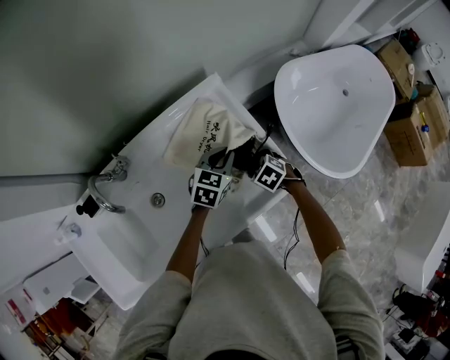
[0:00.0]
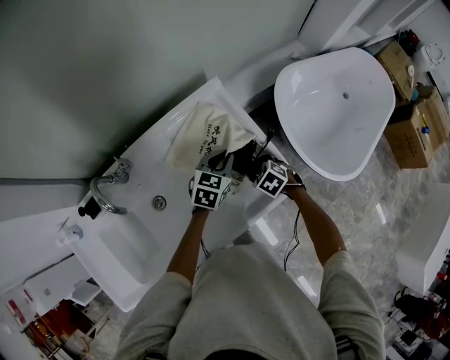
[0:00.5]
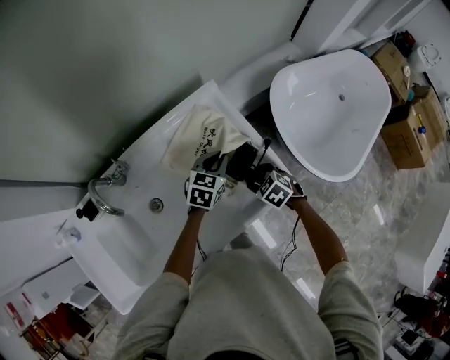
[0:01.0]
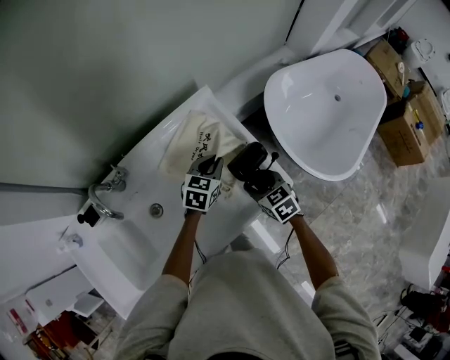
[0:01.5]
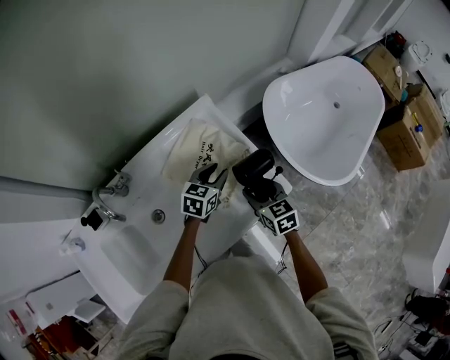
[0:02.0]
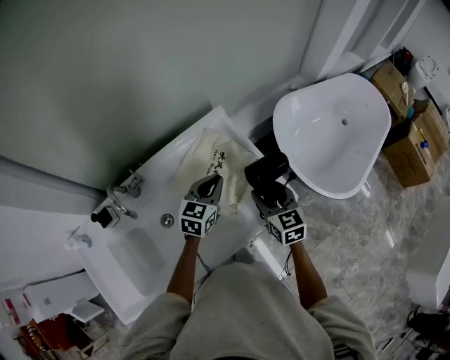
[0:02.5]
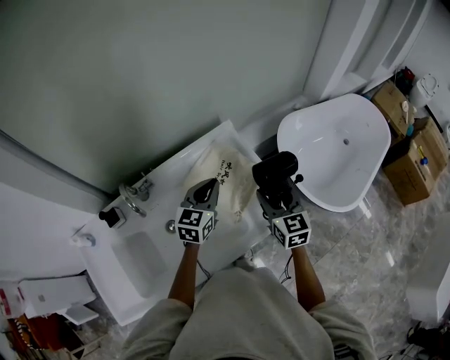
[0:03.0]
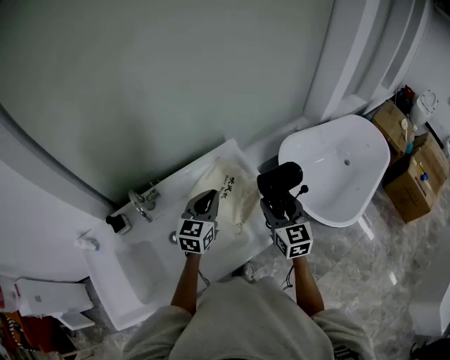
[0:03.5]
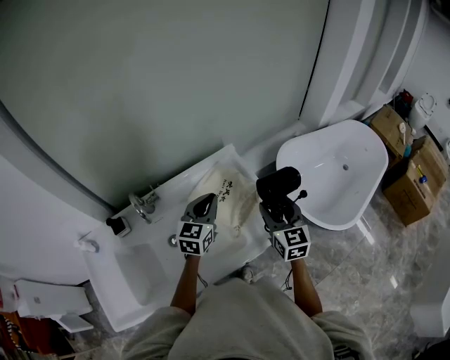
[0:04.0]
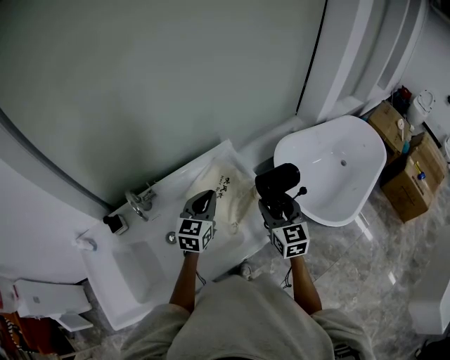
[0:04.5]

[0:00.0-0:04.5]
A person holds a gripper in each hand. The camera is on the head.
0:00.0 to 0:02.0: The right gripper heads upward, covering roughly 10 cm, and tips its fingers upward by some 40 degrees, while the left gripper opens its fingers.
0:02.0 to 0:04.5: The left gripper is displaced upward and to the left by about 20 cm, swivels some 30 degrees, and closes, while the right gripper goes some 15 cm upward, and changes its angle by some 30 degrees.

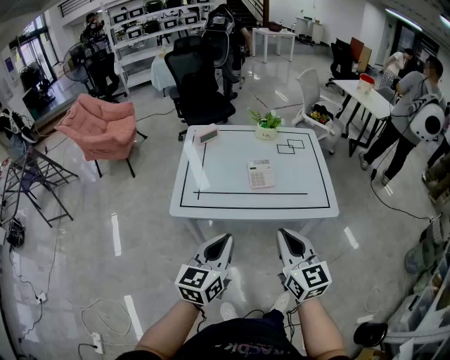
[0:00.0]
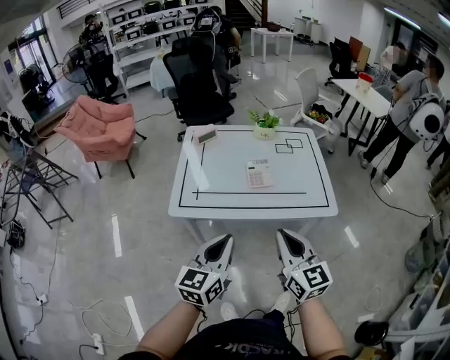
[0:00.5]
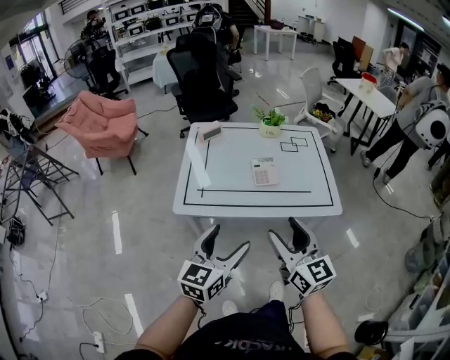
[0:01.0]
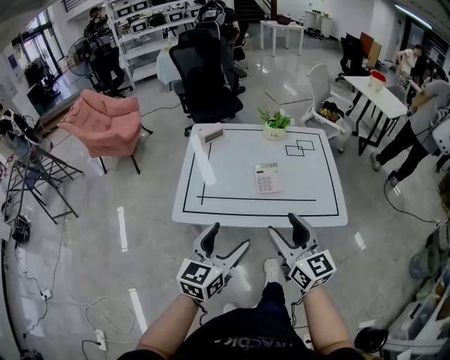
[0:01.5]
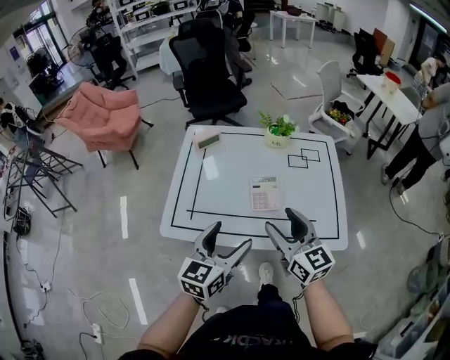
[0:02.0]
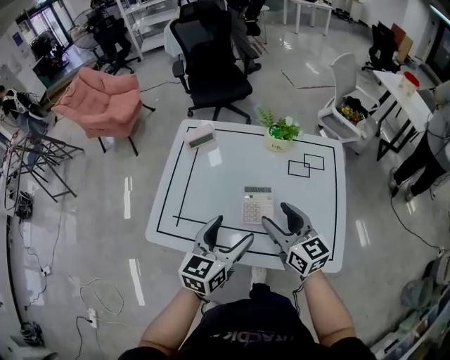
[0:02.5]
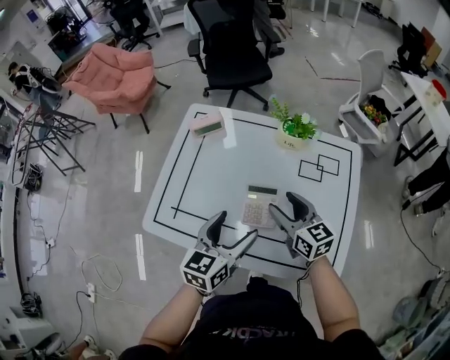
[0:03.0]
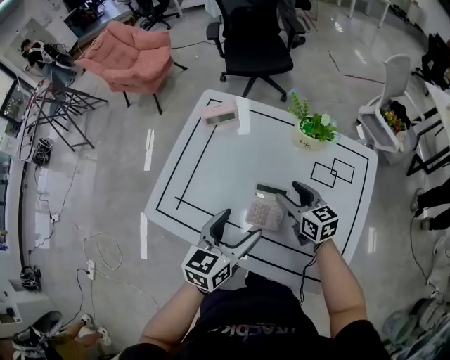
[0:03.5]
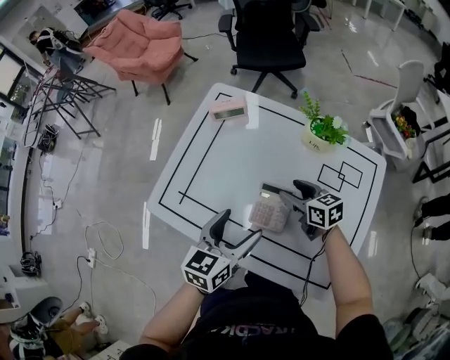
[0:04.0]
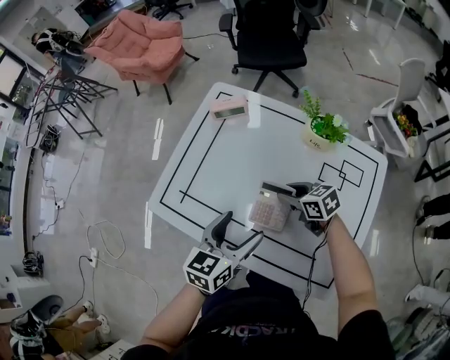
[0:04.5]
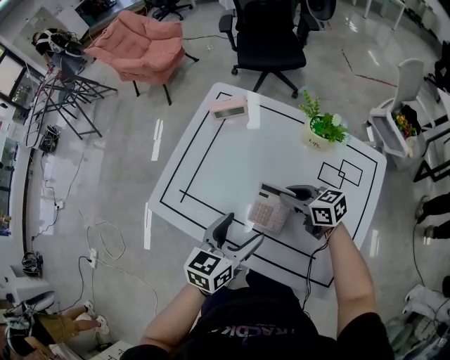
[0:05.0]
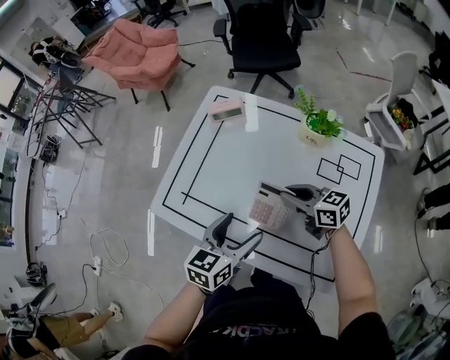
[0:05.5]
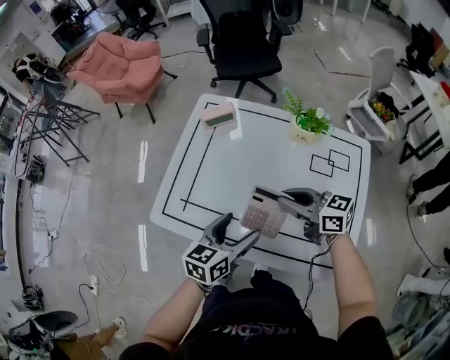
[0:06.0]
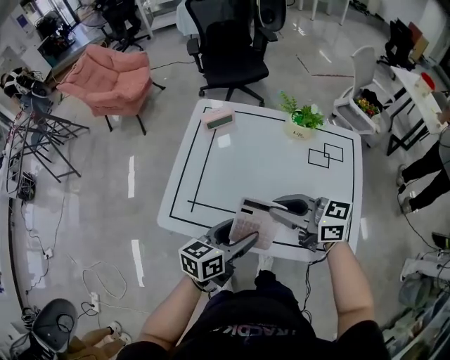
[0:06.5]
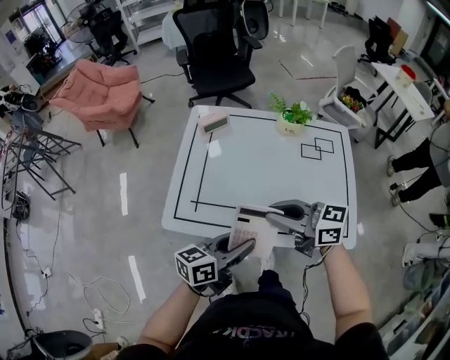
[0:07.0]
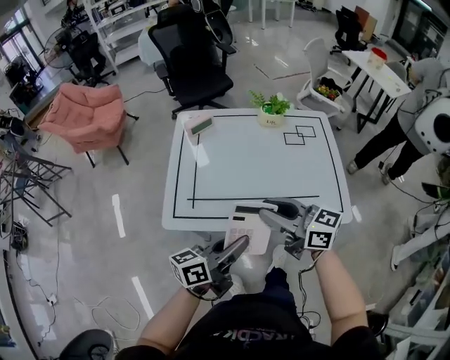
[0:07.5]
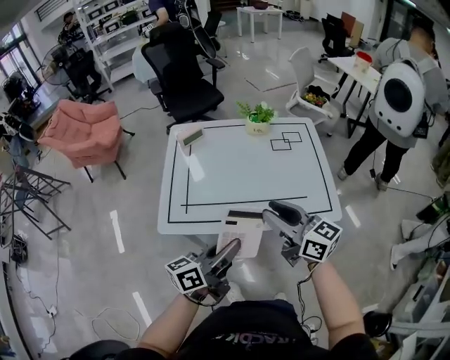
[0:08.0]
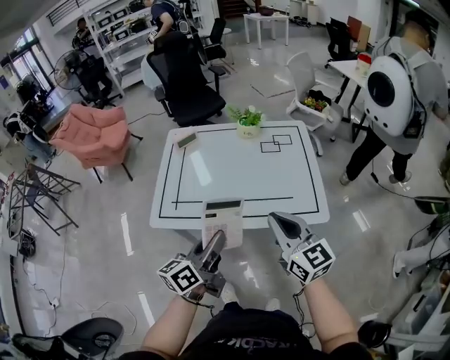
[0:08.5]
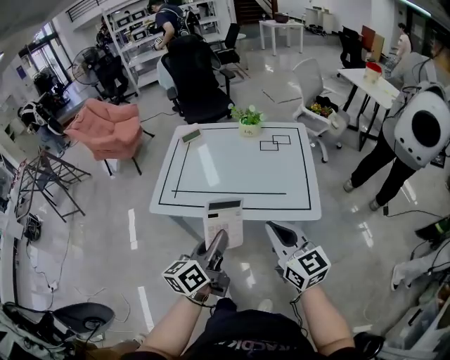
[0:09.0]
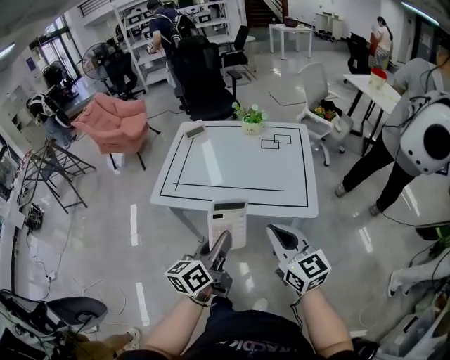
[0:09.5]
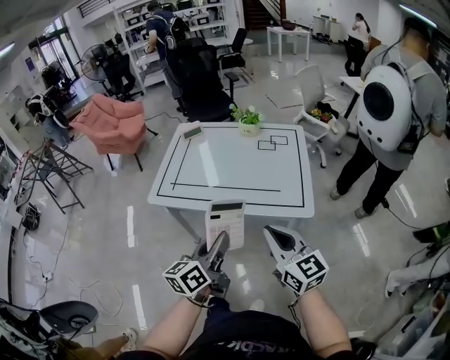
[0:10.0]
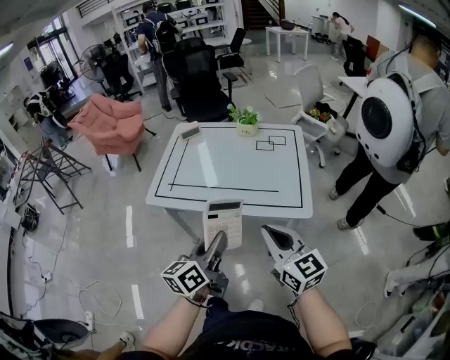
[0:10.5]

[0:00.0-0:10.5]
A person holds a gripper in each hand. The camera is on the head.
0:00.0 to 0:02.0: Both grippers move forward, some 20 cm. The left gripper opens its fingers, while the right gripper opens up.
0:02.0 to 0:04.0: The right gripper changes place by about 35 cm, and turns by some 40 degrees. Meanwhile the left gripper shifts by about 20 cm, and rotates some 20 degrees.
0:04.0 to 0:06.5: The left gripper heads to the left, covering some 5 cm, and swivels roughly 30 degrees; the right gripper goes about 25 cm upward, to the left and backward, changes its angle by roughly 30 degrees, and closes up.
0:06.5 to 0:08.5: The left gripper travels backward and upward by approximately 20 cm, and closes up, while the right gripper heads backward and to the right, covering approximately 25 cm, and turns by roughly 50 degrees.
0:08.5 to 0:10.5: The two grippers go approximately 15 cm backward and to the right.

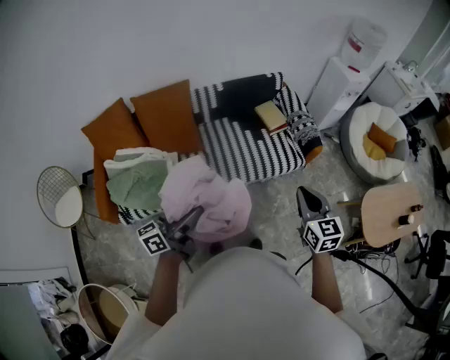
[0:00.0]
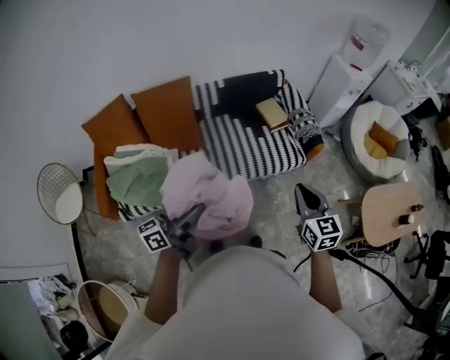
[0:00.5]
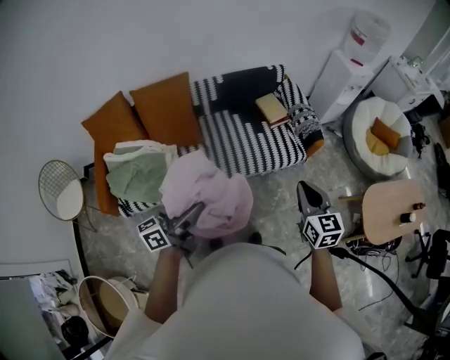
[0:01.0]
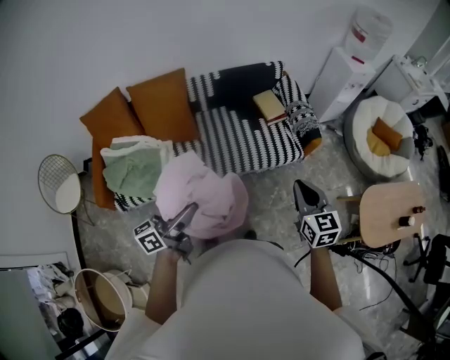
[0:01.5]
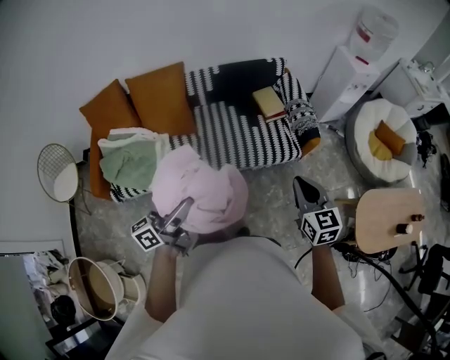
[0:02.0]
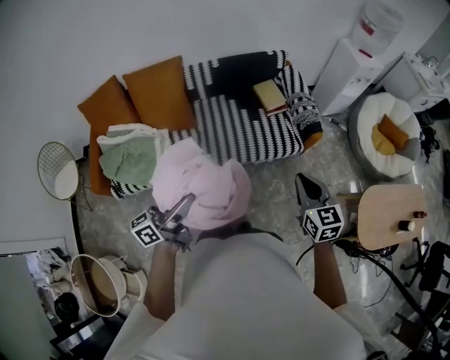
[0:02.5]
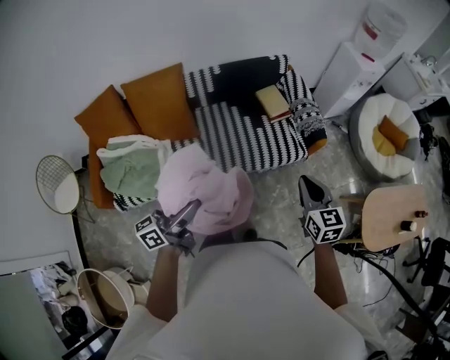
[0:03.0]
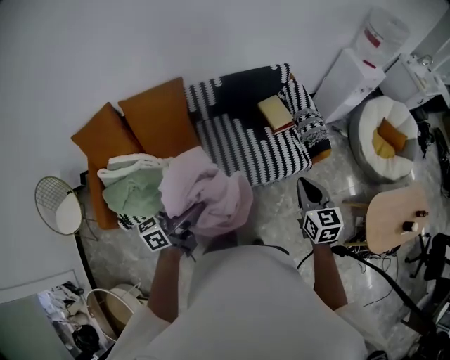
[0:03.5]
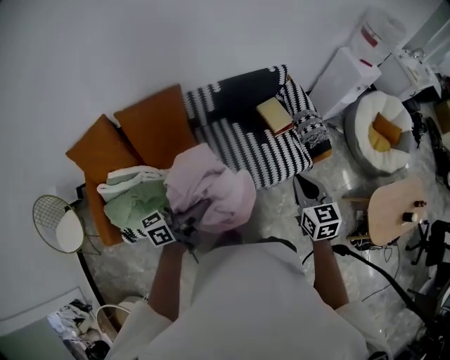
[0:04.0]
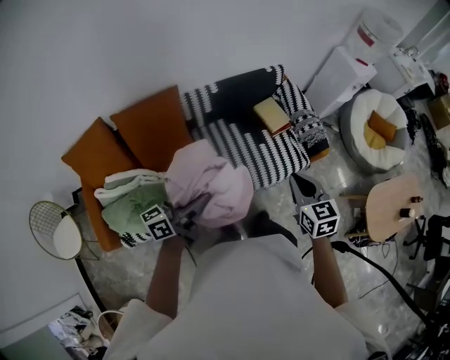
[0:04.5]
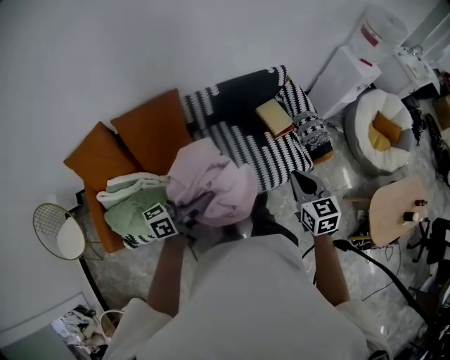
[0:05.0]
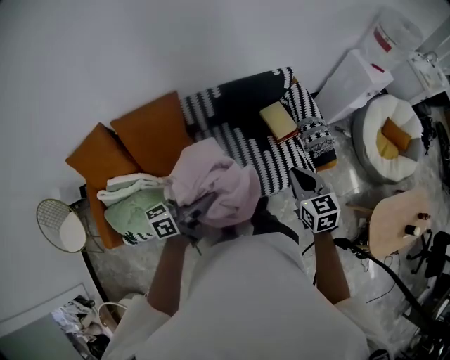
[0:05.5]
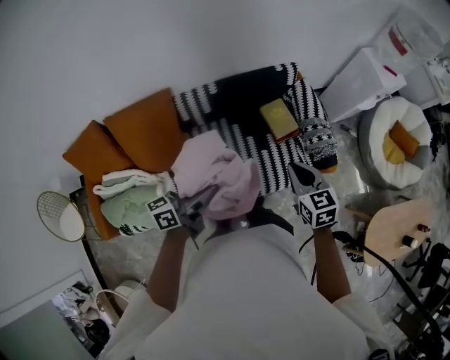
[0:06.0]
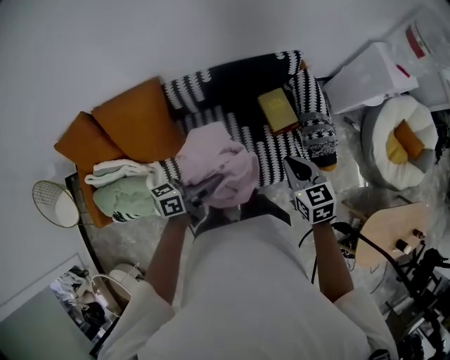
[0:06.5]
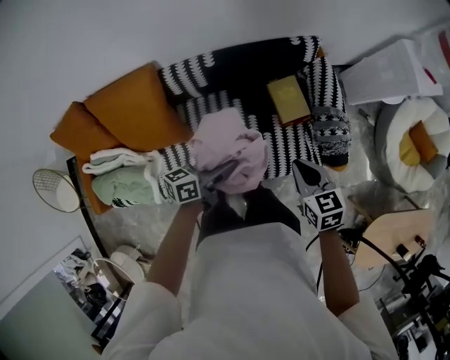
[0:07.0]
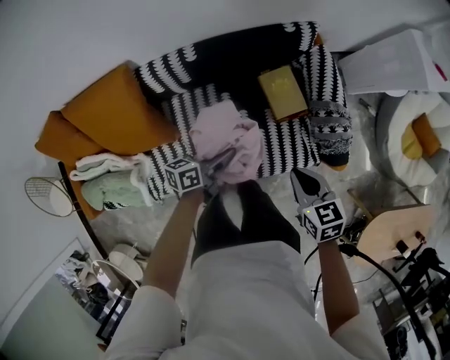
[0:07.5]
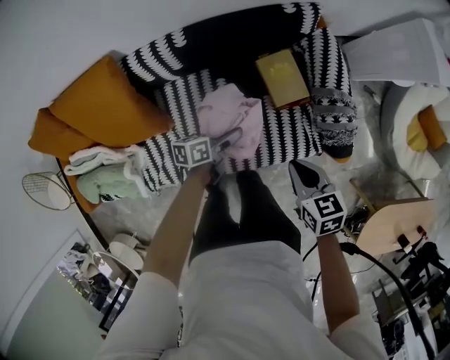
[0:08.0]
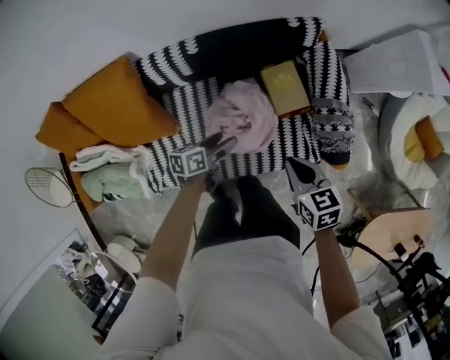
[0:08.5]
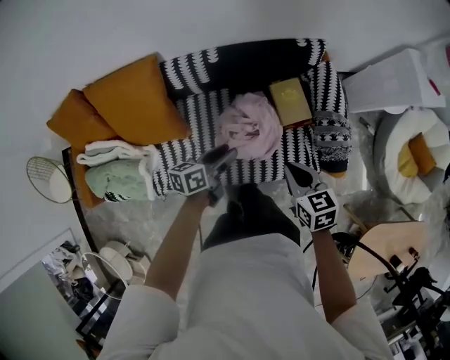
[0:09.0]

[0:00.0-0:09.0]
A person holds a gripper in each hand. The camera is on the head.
0:00.0 to 0:02.0: The grippers both shift to the right by roughly 10 cm.
0:02.0 to 0:04.5: The left gripper is displaced forward and to the left by about 35 cm, while the right gripper goes some 35 cm to the left and forward.
0:04.5 to 0:07.0: The right gripper shifts about 40 cm forward and downward, and turns by approximately 20 degrees, while the left gripper is displaced forward, downward and to the right by roughly 50 cm, and swivels roughly 20 degrees.
0:07.0 to 0:09.0: The right gripper moves about 15 cm downward and comes back. Meanwhile the left gripper travels downward and back again, approximately 25 cm each way, and opens, then closes once more.

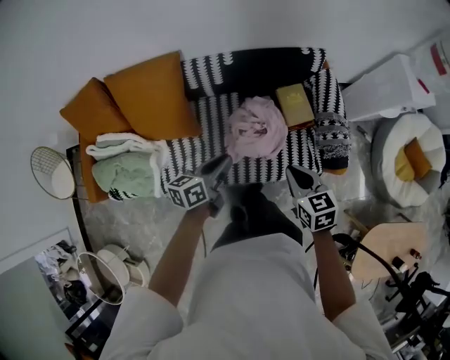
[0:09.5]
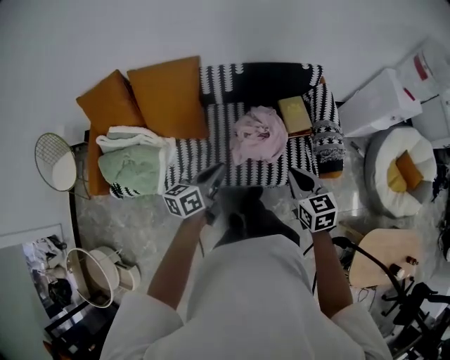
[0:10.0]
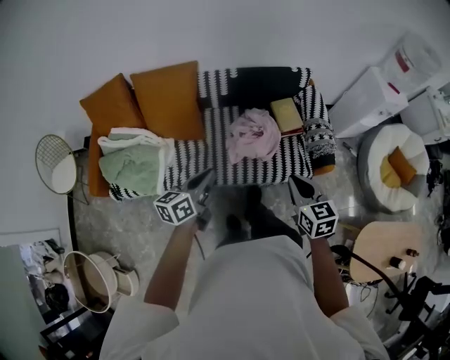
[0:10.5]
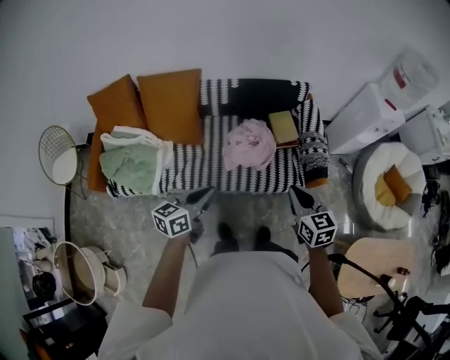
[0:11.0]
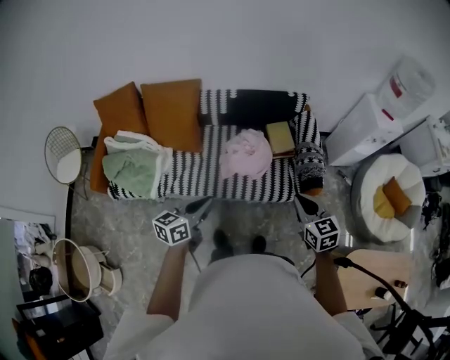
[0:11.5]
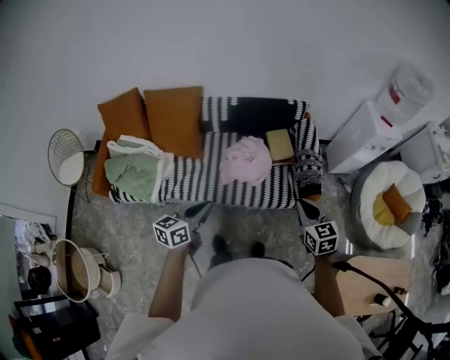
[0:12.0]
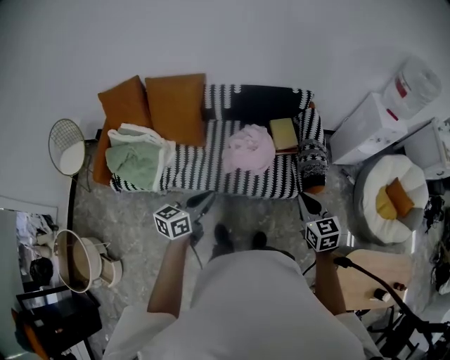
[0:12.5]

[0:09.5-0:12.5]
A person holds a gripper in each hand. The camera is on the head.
0:09.5 to 0:11.0: The two grippers go approximately 30 cm backward and upward.
0:11.0 to 0:12.5: The left gripper is displaced to the right by approximately 5 cm; the right gripper travels to the right by about 10 cm.
